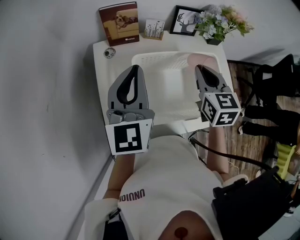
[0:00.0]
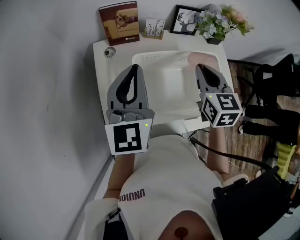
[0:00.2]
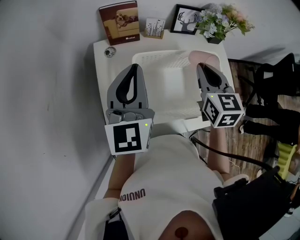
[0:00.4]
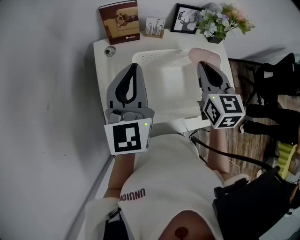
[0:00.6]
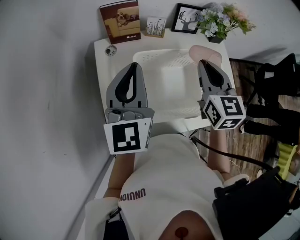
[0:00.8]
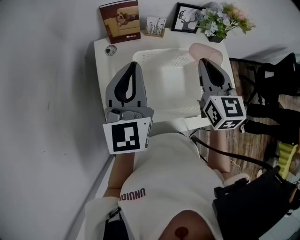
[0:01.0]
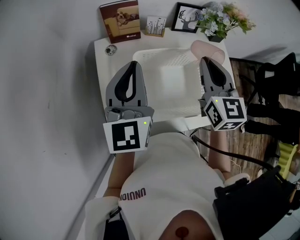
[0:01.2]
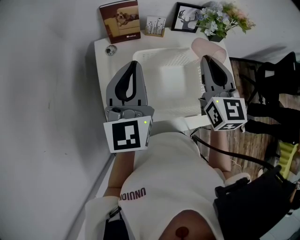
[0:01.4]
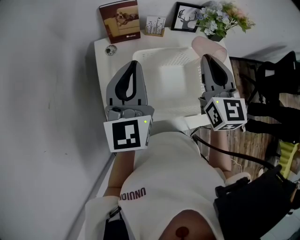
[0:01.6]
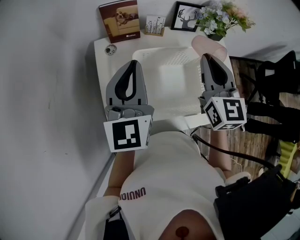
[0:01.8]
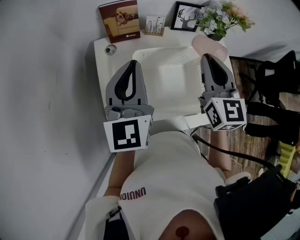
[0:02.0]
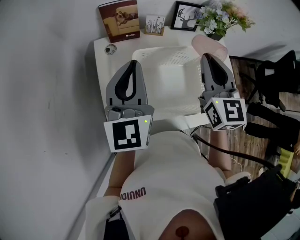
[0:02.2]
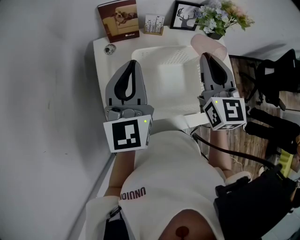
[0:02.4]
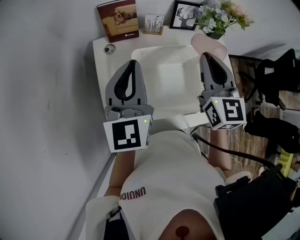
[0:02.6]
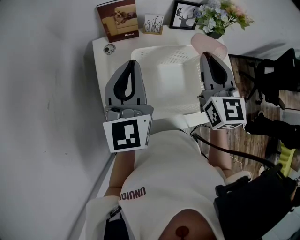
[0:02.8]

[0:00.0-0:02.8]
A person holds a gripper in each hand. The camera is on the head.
0:00.0 to 0:01.4: The right gripper heads upward, covering roughly 5 cm.
0:01.4 to 0:02.8: Neither gripper changes place.

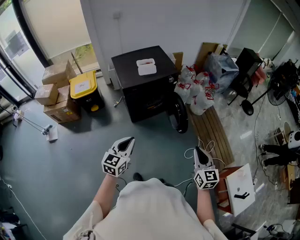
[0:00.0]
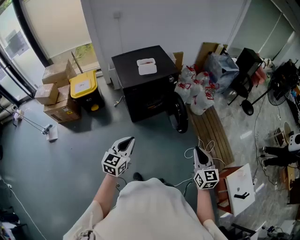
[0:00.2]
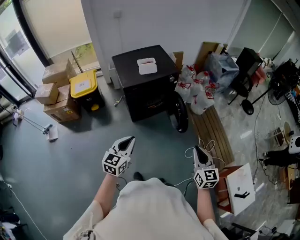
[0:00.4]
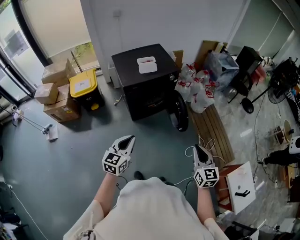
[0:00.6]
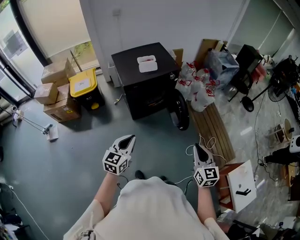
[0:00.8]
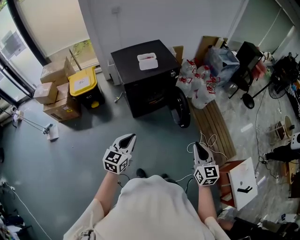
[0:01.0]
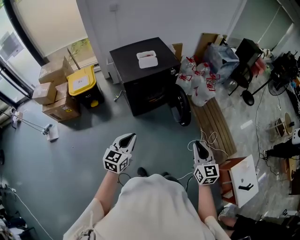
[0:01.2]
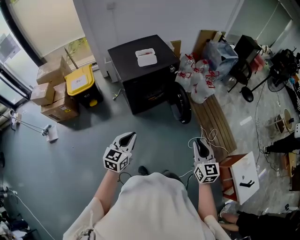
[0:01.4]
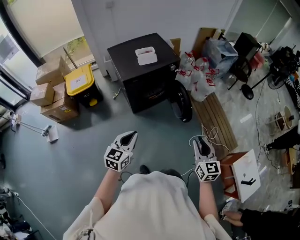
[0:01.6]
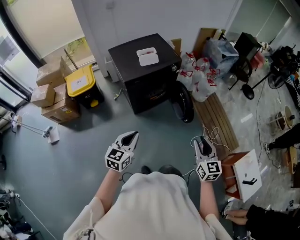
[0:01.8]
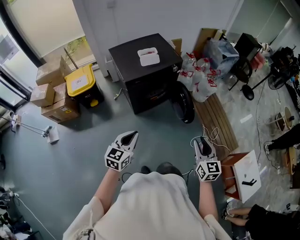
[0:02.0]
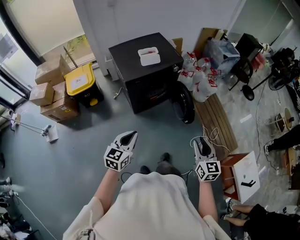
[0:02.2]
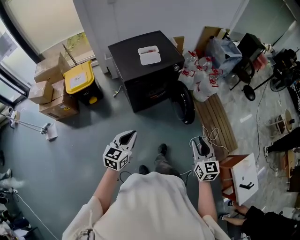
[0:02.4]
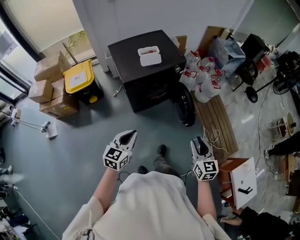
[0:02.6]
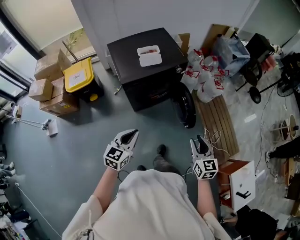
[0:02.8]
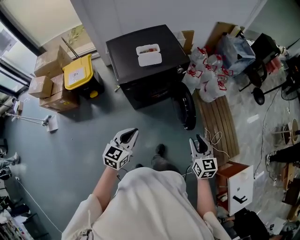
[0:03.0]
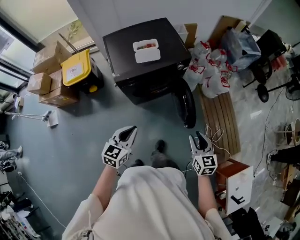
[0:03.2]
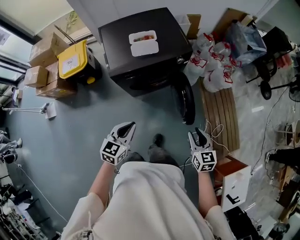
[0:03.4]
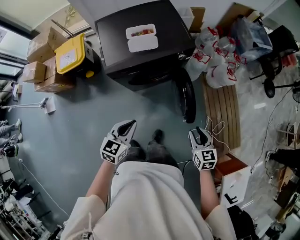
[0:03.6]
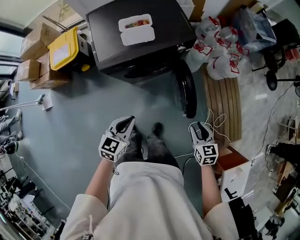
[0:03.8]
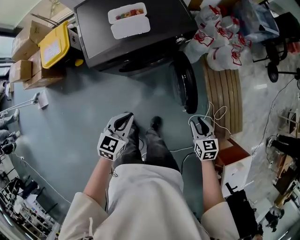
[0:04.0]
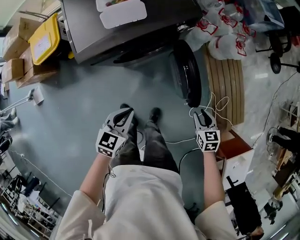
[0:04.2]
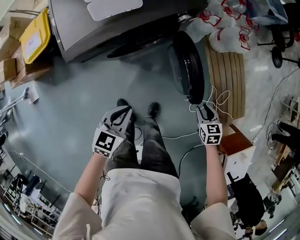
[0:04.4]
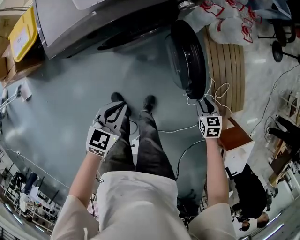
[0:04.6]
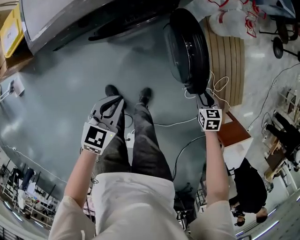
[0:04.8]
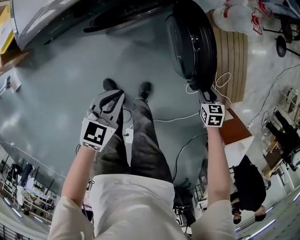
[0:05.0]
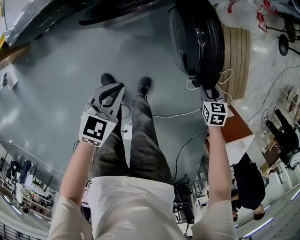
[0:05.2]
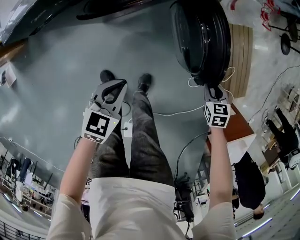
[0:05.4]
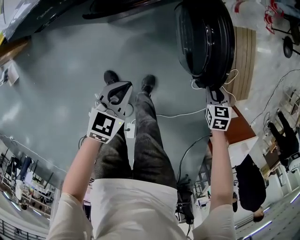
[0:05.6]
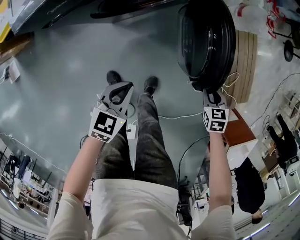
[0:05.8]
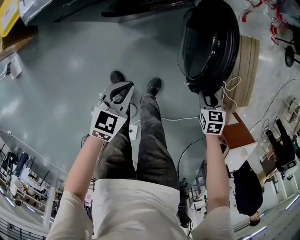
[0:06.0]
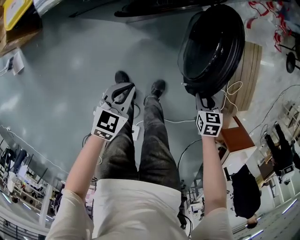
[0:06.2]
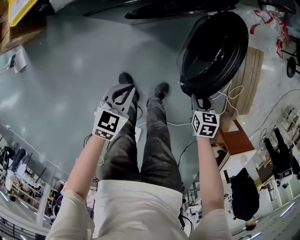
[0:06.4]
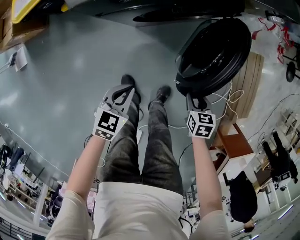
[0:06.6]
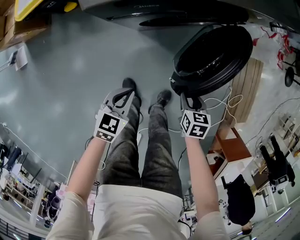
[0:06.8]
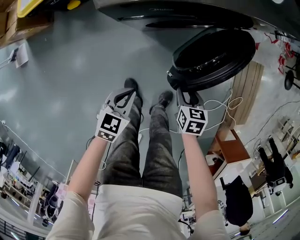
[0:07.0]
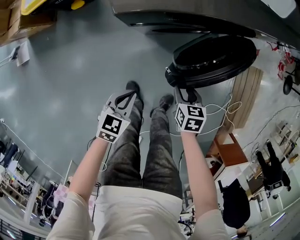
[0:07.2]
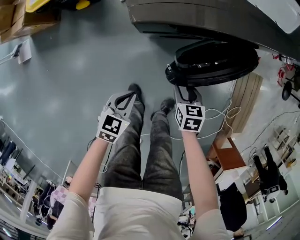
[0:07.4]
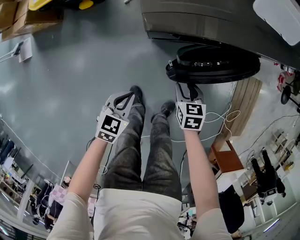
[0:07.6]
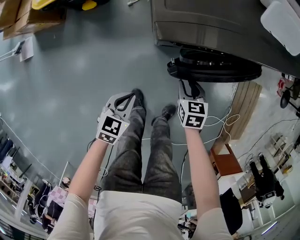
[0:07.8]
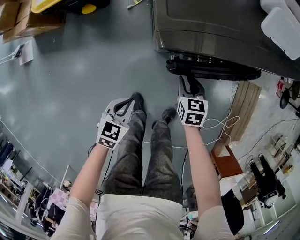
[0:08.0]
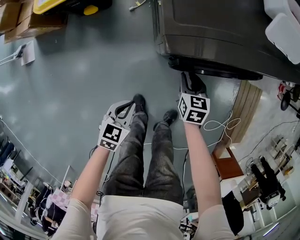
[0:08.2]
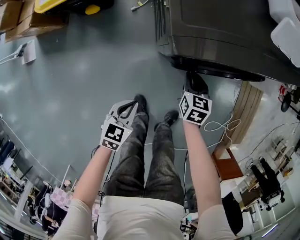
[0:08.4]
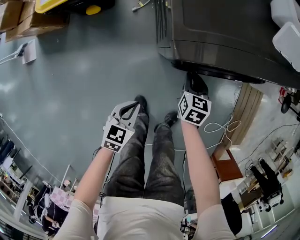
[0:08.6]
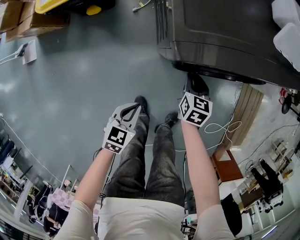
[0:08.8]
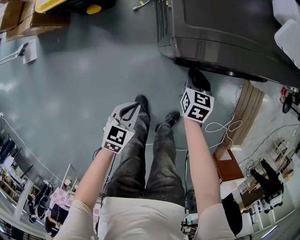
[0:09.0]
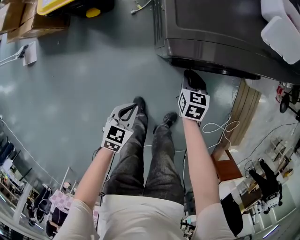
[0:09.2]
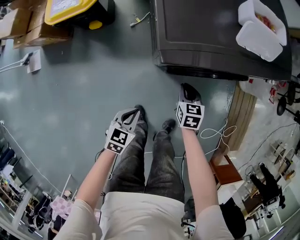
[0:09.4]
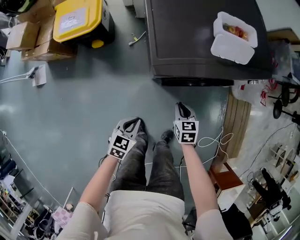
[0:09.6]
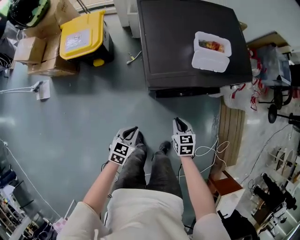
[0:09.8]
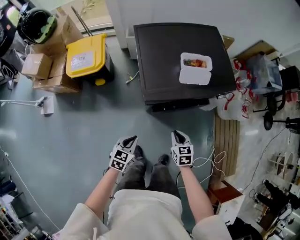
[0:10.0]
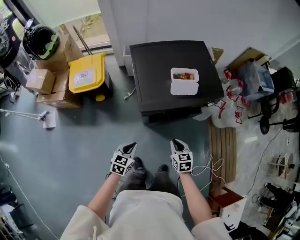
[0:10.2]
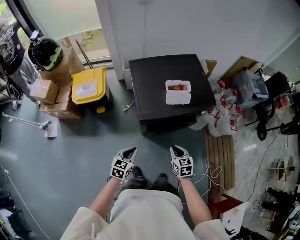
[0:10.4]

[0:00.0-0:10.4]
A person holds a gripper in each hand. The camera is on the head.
0:00.0 to 0:01.4: The right gripper moves to the left, approximately 5 cm. Meanwhile the left gripper moves roughly 5 cm.
0:01.4 to 0:03.0: The grippers both shift forward by roughly 20 cm. The right gripper opens.
0:03.0 to 0:04.4: The grippers both shift downward and forward by approximately 35 cm. The right gripper angles its fingers downward, by approximately 30 degrees; the left gripper rotates about 20 degrees.
0:04.4 to 0:06.0: Both grippers move downward, roughly 15 cm.
0:06.0 to 0:07.4: The left gripper travels to the left by approximately 20 cm, while the right gripper is displaced to the left by approximately 35 cm.
0:07.4 to 0:09.0: The left gripper heads to the left, covering roughly 5 cm, while the right gripper moves forward and to the left, roughly 15 cm, and closes its fingers.
0:09.0 to 0:10.4: Both grippers travel together upward, roughly 35 cm.

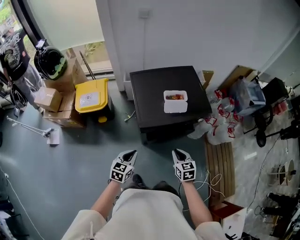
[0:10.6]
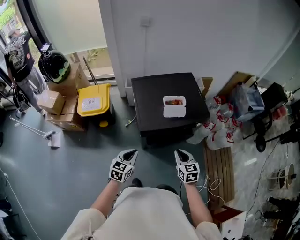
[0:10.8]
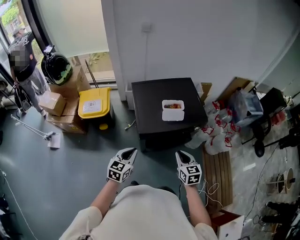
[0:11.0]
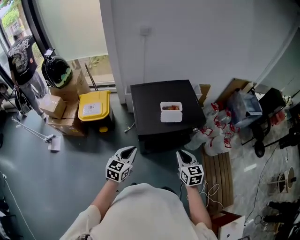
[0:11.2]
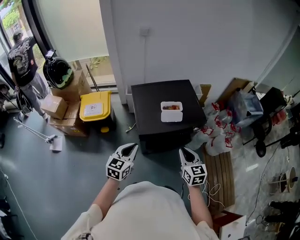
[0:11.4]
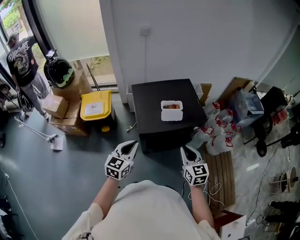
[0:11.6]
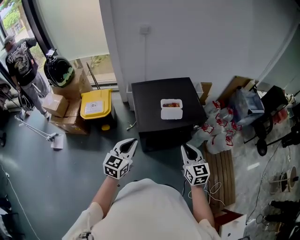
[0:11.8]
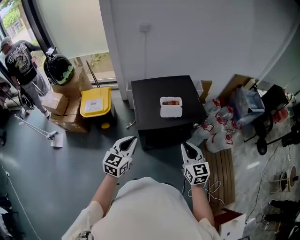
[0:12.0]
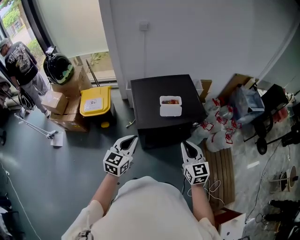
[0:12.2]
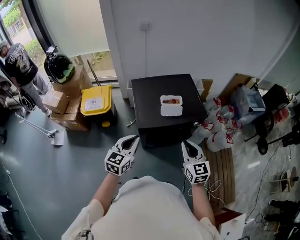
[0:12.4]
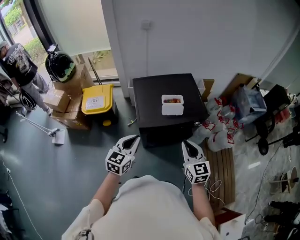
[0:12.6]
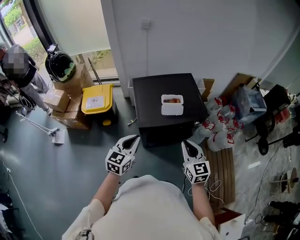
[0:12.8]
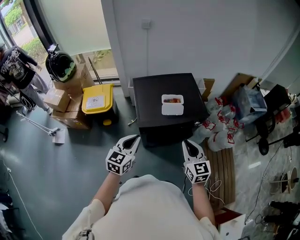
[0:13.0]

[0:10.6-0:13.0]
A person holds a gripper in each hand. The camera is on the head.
0:10.6 to 0:11.8: Both grippers move upward, some 20 cm. The right gripper swivels some 20 degrees.
0:11.8 to 0:13.0: The grippers stay close to where they were, moving slightly.

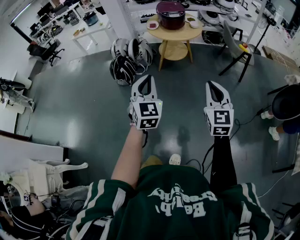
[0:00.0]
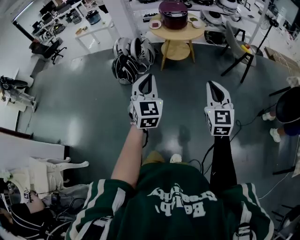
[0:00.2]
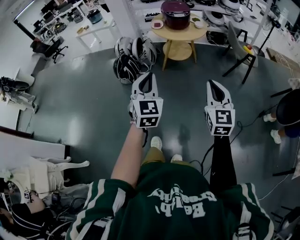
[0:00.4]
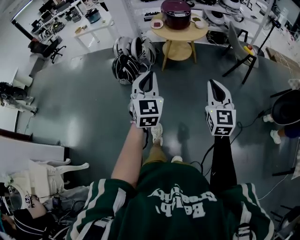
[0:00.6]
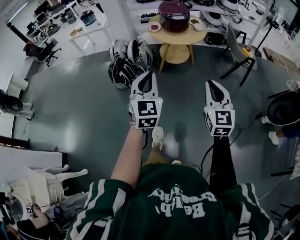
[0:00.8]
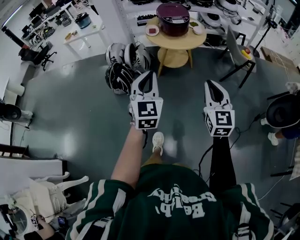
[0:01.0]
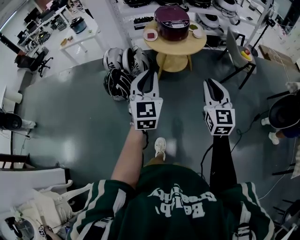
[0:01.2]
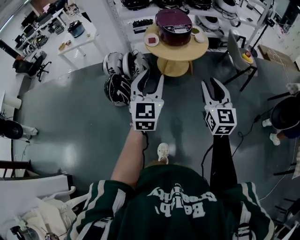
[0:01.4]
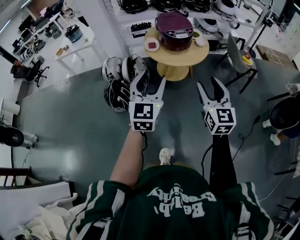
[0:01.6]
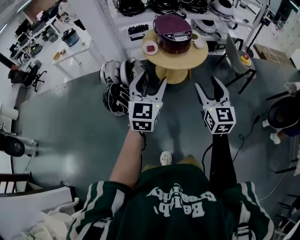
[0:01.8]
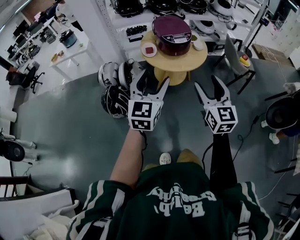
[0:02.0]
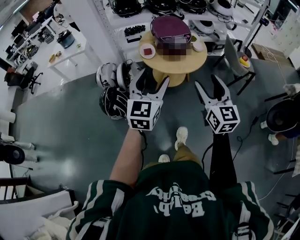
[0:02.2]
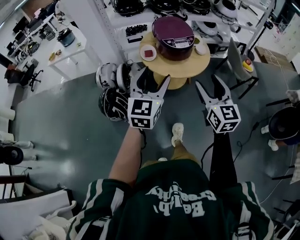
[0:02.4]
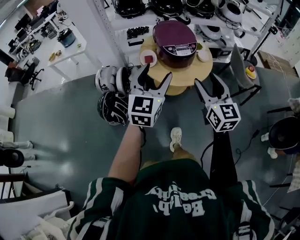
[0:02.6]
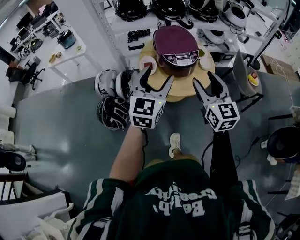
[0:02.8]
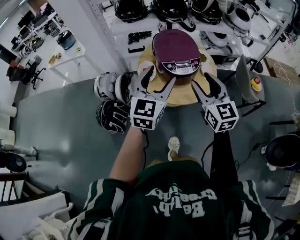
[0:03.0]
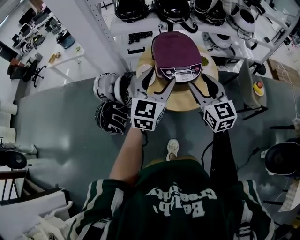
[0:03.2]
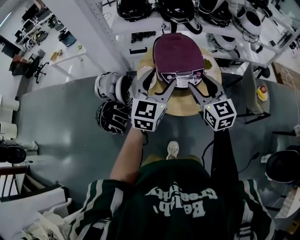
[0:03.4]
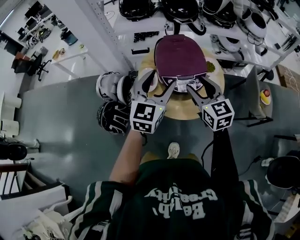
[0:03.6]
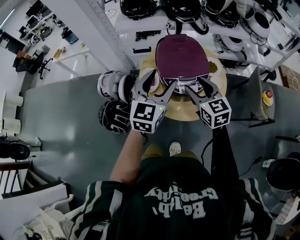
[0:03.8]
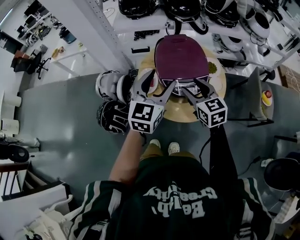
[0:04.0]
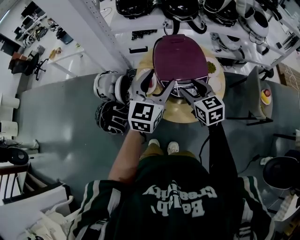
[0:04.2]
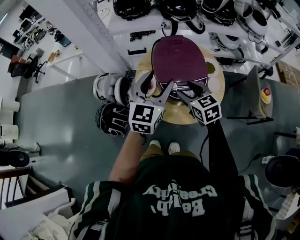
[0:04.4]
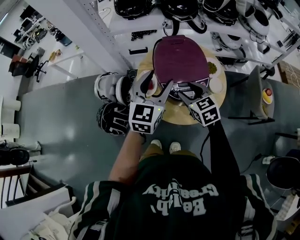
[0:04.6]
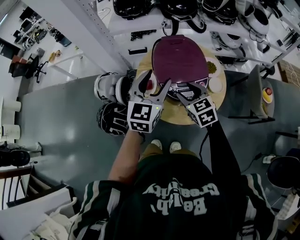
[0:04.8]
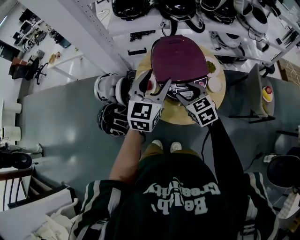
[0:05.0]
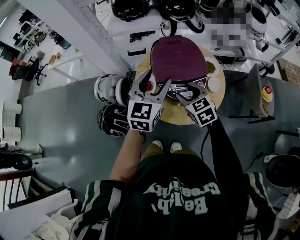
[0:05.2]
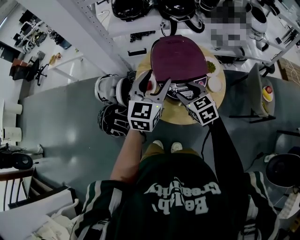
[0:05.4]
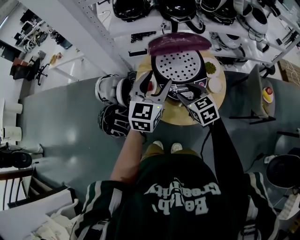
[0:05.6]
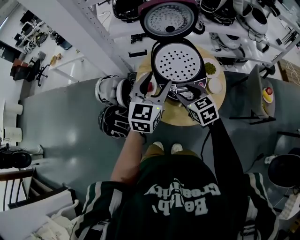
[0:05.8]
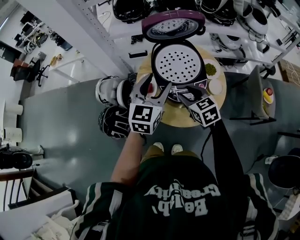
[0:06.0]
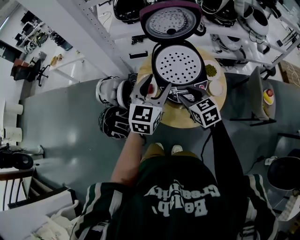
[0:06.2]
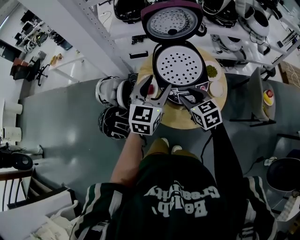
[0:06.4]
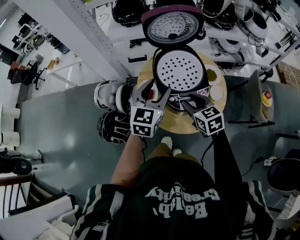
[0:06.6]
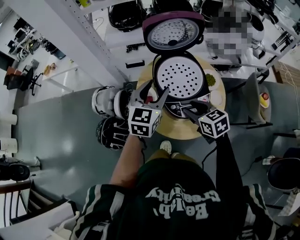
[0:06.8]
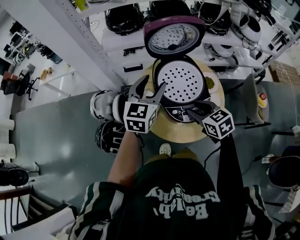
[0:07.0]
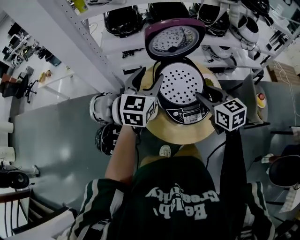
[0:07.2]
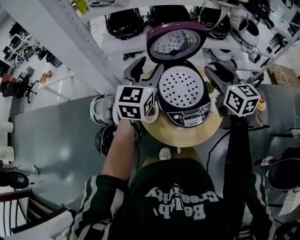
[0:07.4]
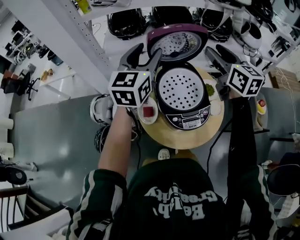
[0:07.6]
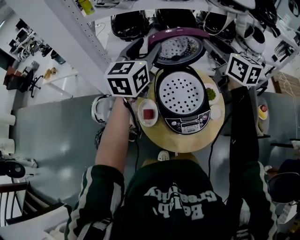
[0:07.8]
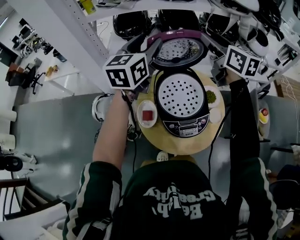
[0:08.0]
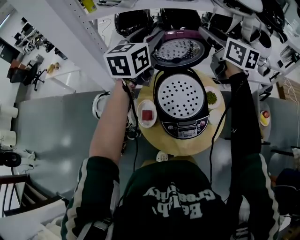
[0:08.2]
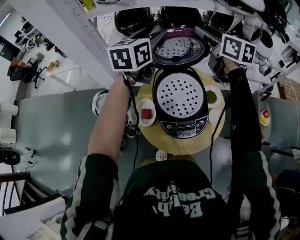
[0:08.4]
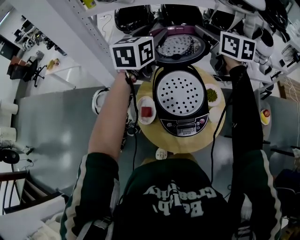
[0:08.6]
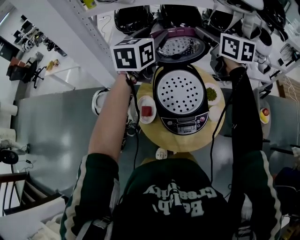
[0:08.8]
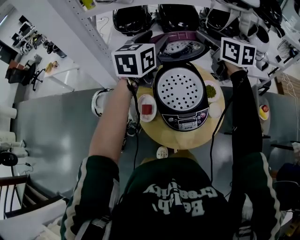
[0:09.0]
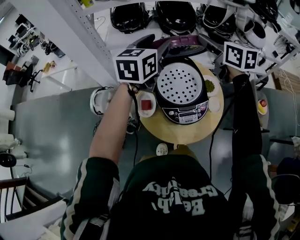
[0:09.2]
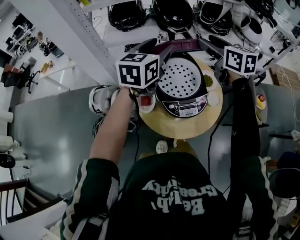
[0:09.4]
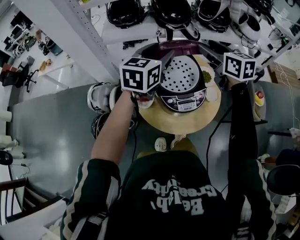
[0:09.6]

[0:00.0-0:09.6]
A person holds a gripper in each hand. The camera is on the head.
0:00.0 to 0:01.6: Both grippers travel together forward, about 35 cm. The left gripper turns by some 20 degrees, and opens up; the right gripper opens up.
0:01.6 to 0:03.2: Both grippers travel together forward, some 40 cm.
0:03.2 to 0:04.8: The right gripper travels downward and forward by approximately 20 cm, and swivels approximately 20 degrees. The left gripper heads forward, covering some 10 cm.
0:04.8 to 0:06.4: The grippers move only a little.
0:06.4 to 0:08.0: The right gripper is displaced upward and forward by about 40 cm, and rotates about 30 degrees. The left gripper shifts about 30 cm forward and upward.
0:08.0 to 0:09.6: Both grippers travel together backward and downward, about 15 cm.
